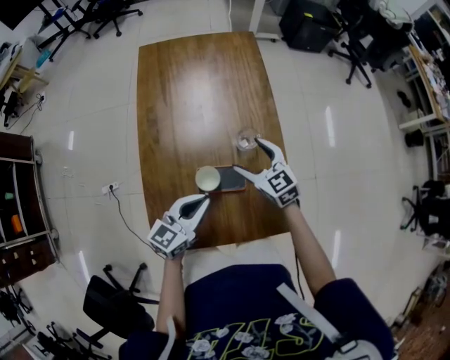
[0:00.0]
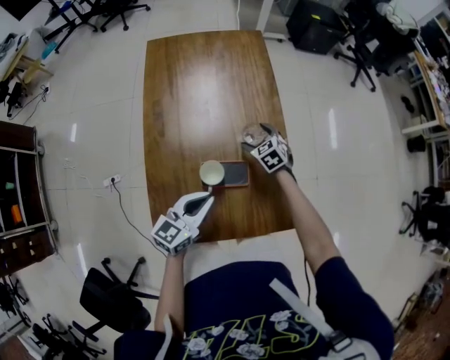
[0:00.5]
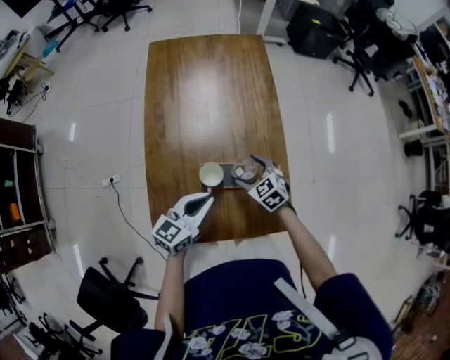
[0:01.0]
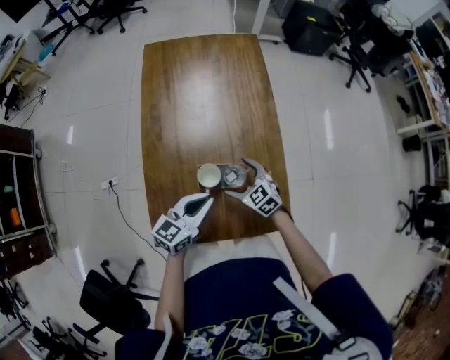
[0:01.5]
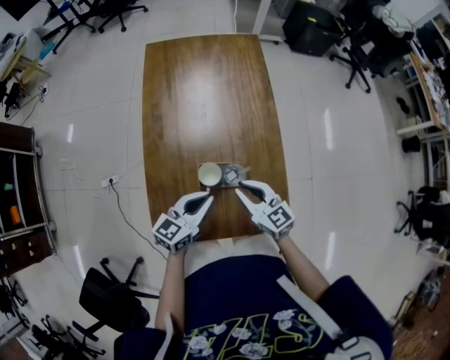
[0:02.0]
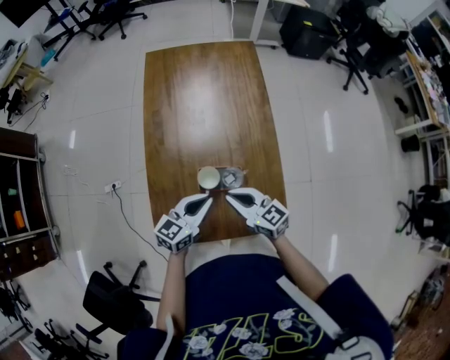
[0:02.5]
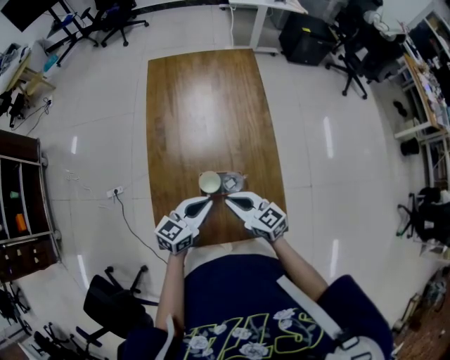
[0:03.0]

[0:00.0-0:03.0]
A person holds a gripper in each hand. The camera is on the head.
0:00.0 to 0:01.5: The right gripper shifts approximately 10 cm downward and backward.
0:01.5 to 0:03.0: The right gripper shifts roughly 15 cm upward and backward, rotates some 30 degrees, and closes.

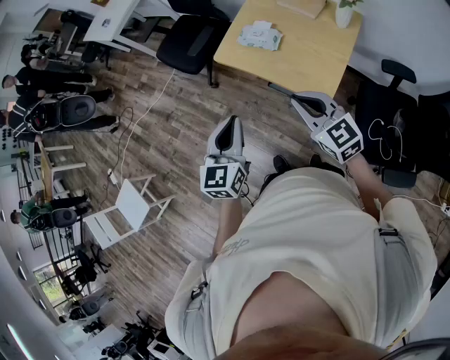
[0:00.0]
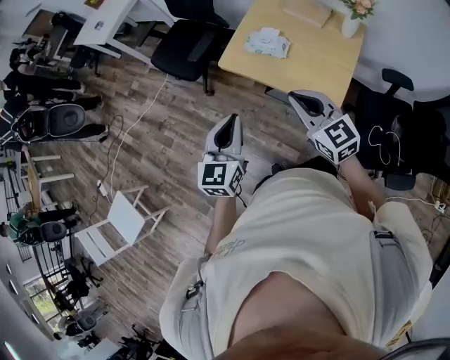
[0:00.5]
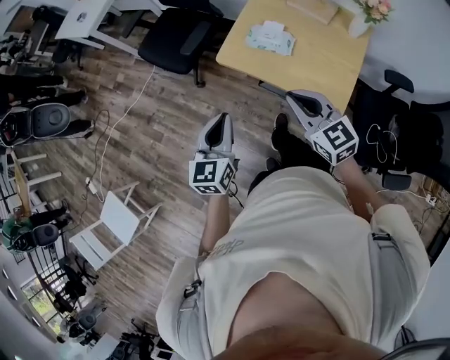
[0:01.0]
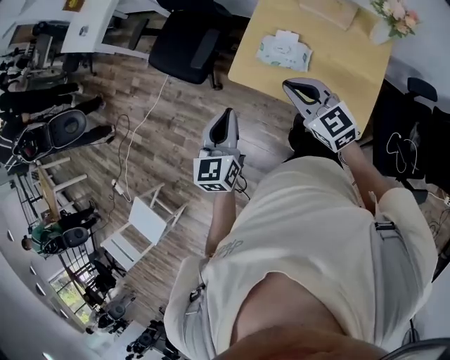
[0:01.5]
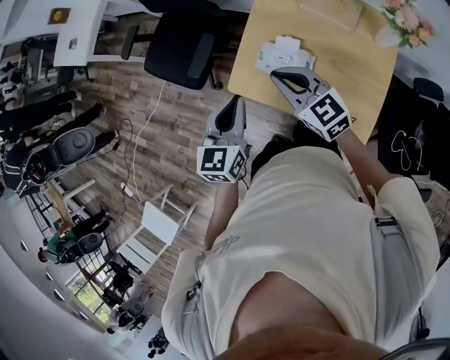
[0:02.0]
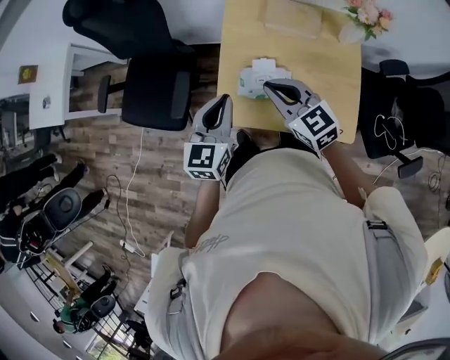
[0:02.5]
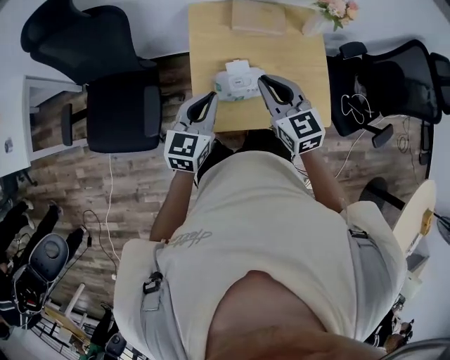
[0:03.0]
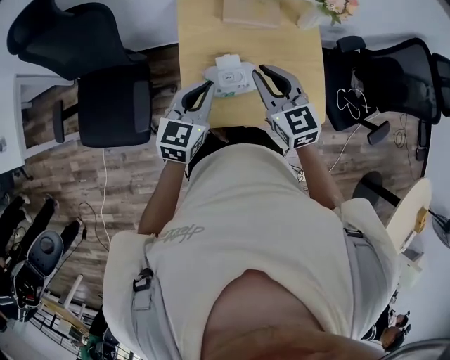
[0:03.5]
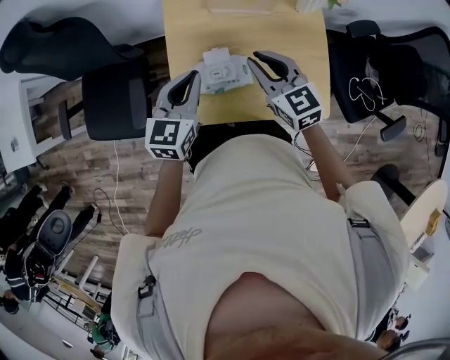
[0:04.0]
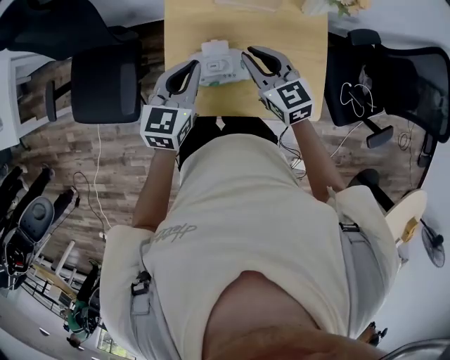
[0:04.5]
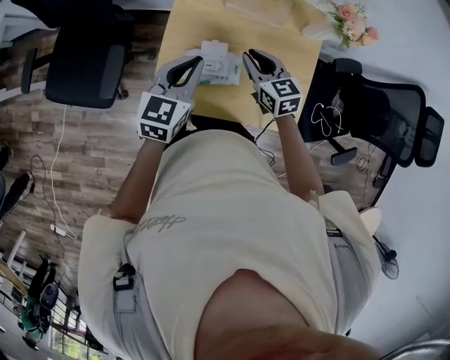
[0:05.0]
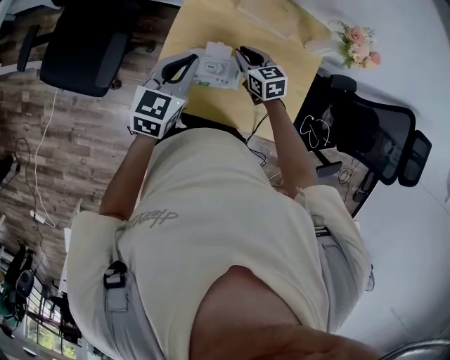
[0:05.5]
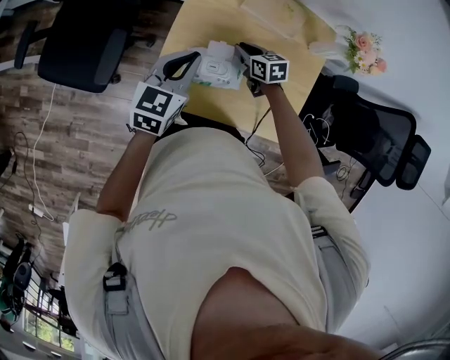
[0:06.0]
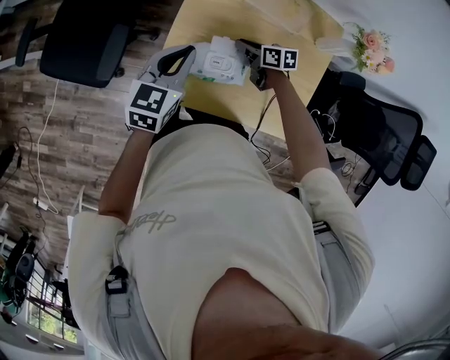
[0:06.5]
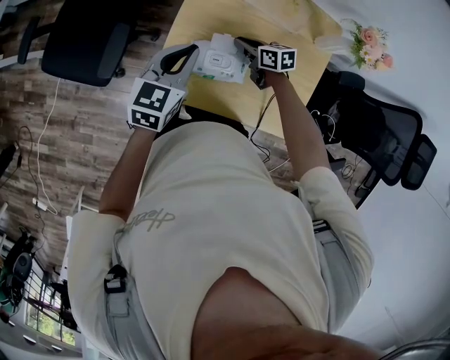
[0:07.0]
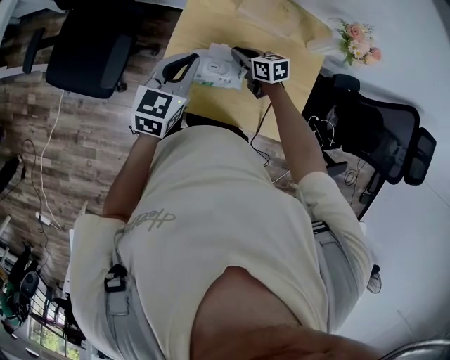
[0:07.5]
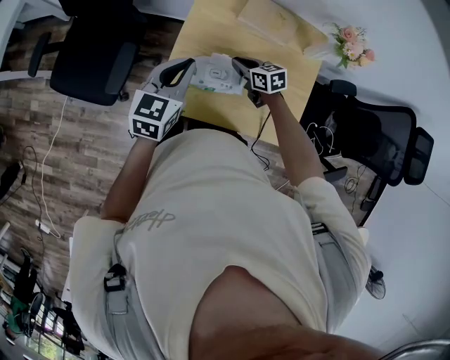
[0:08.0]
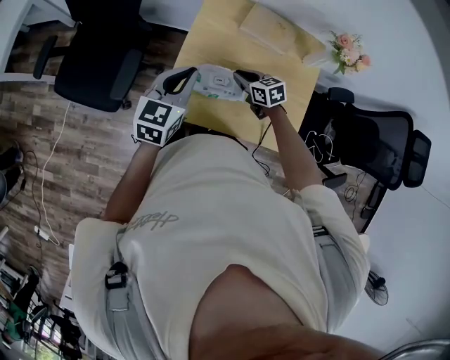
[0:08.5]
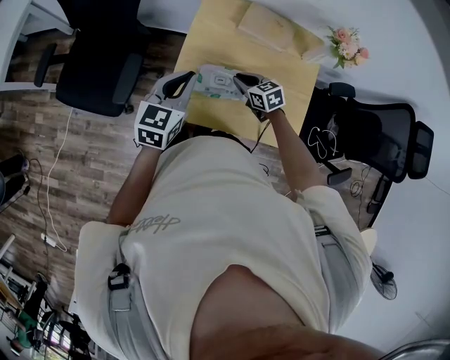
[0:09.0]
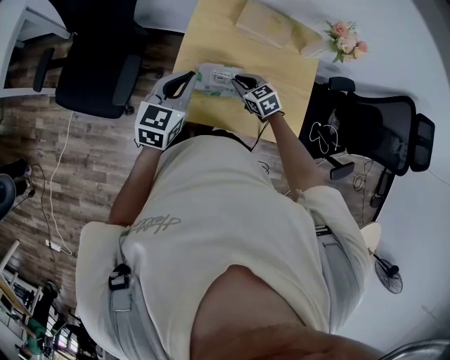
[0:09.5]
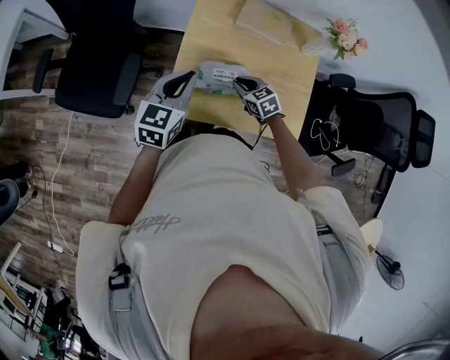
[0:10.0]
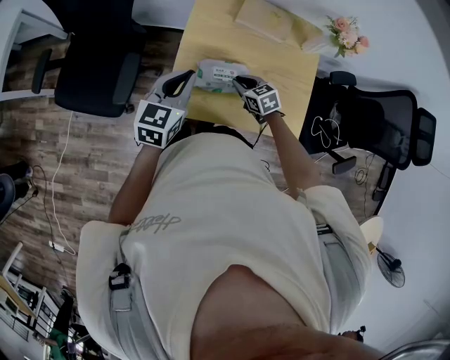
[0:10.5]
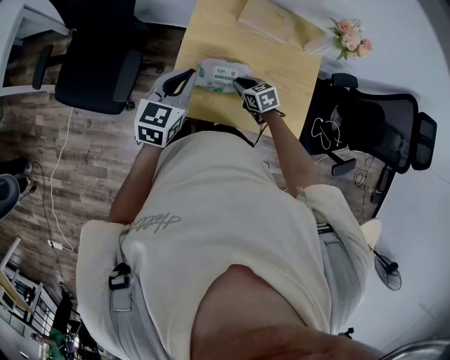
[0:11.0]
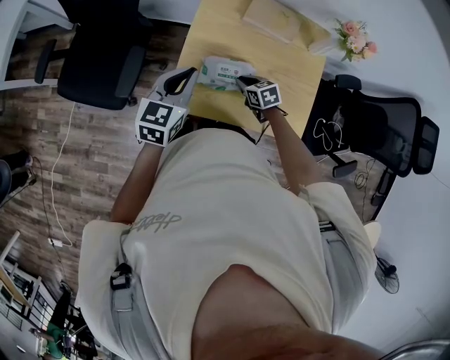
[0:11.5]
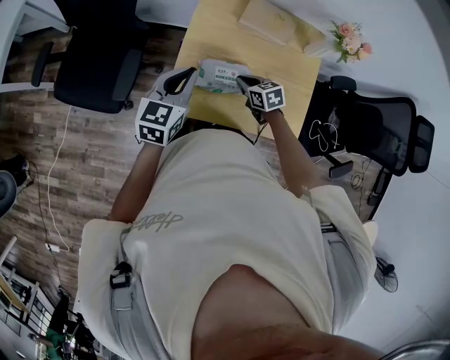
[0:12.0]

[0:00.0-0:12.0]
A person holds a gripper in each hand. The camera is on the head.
0:00.0 to 0:02.0: The two grippers go roughly 40 cm forward.
0:02.0 to 0:04.0: The right gripper shifts by roughly 15 cm, and swivels approximately 40 degrees. Meanwhile the left gripper changes place by about 15 cm, and turns by approximately 30 degrees.
0:04.0 to 0:06.0: The left gripper shifts some 5 cm to the left, while the right gripper is displaced downward and forward by approximately 25 cm, and turns by roughly 30 degrees.
0:06.0 to 0:08.0: The left gripper changes place by roughly 5 cm. The right gripper moves approximately 5 cm.
0:08.0 to 0:10.0: The right gripper travels backward by about 5 cm.
0:10.0 to 0:12.0: The grippers stay close to where they were, moving slightly.

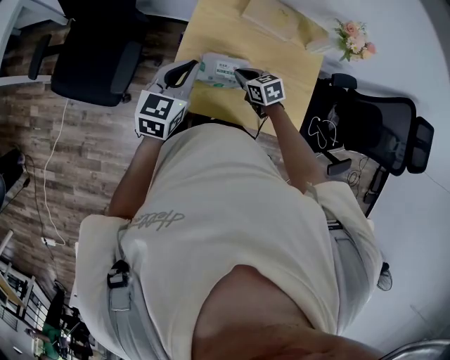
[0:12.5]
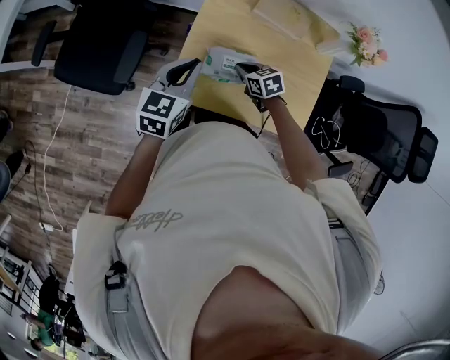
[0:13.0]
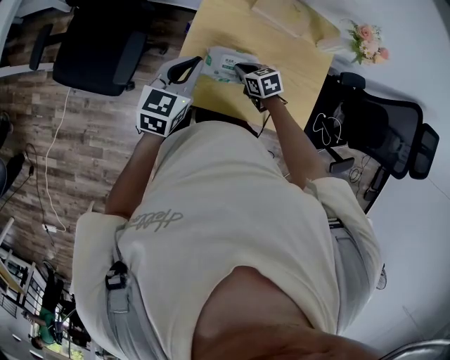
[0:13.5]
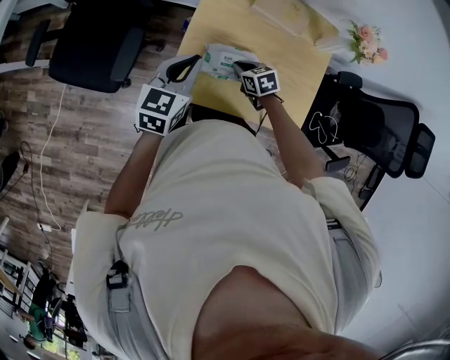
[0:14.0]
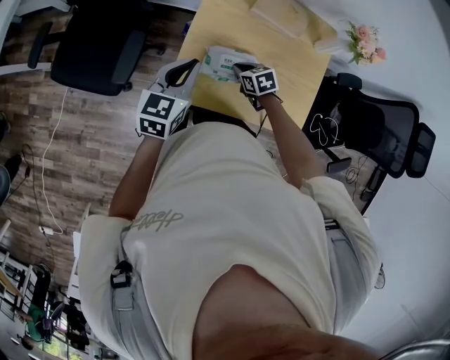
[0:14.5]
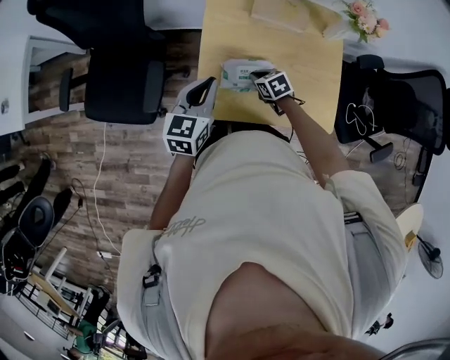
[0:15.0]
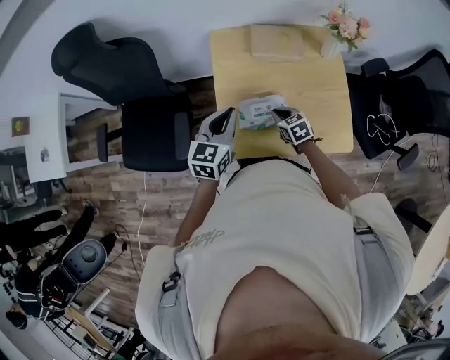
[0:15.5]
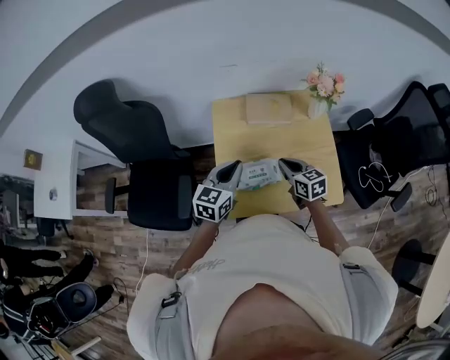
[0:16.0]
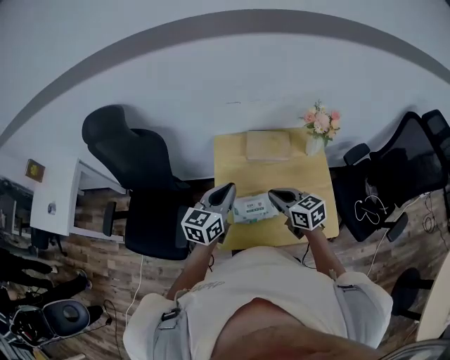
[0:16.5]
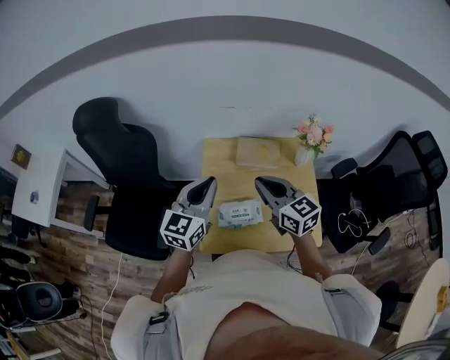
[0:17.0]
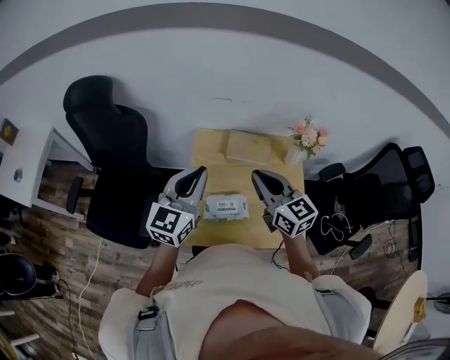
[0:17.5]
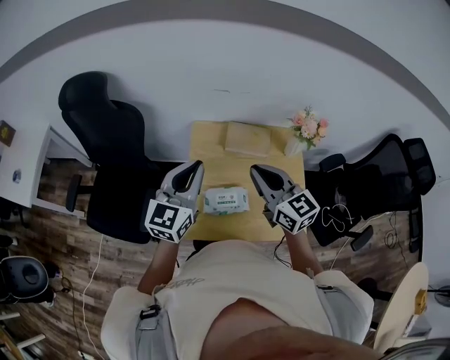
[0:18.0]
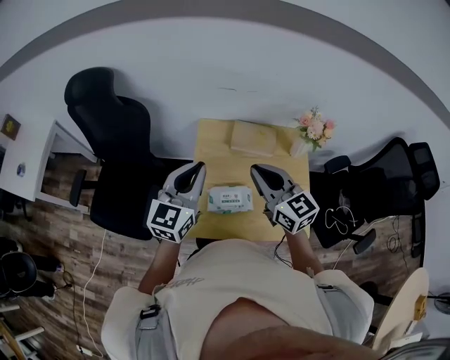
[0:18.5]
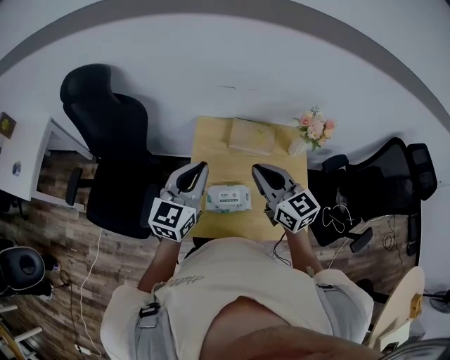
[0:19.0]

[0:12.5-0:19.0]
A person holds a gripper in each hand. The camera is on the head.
0:12.5 to 0:14.5: The grippers move only a little.
0:14.5 to 0:17.0: The left gripper moves upward, approximately 20 cm, and changes its angle by some 20 degrees. The right gripper shifts roughly 40 cm upward, and angles its fingers upward, by approximately 50 degrees.
0:17.0 to 0:19.0: The grippers stay close to where they were, moving slightly.

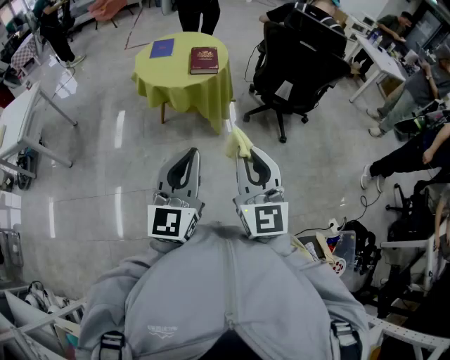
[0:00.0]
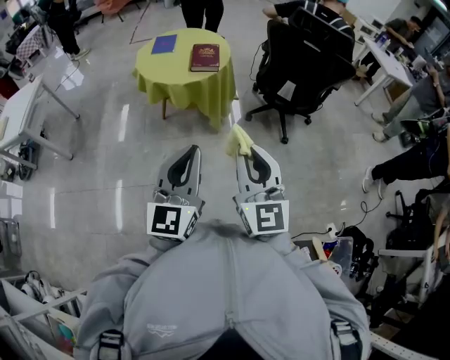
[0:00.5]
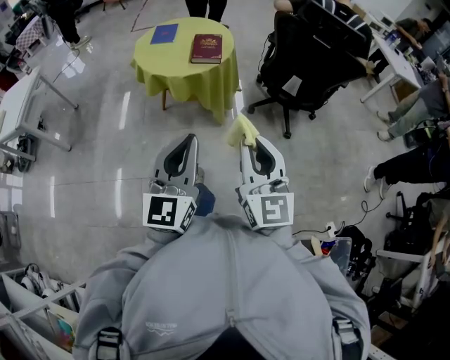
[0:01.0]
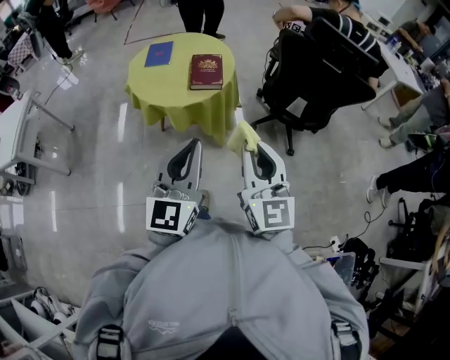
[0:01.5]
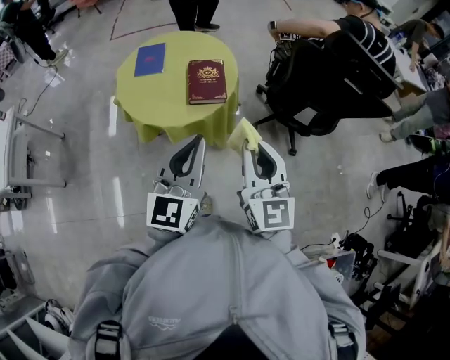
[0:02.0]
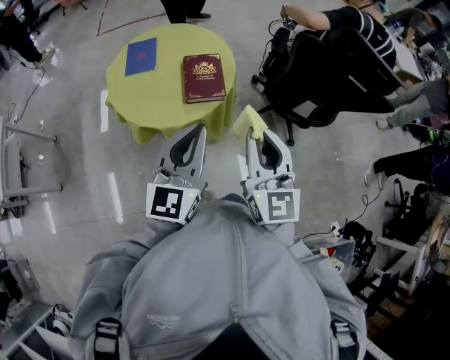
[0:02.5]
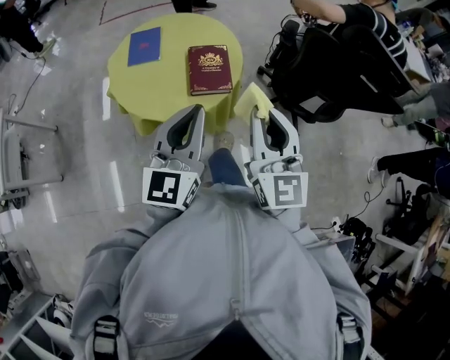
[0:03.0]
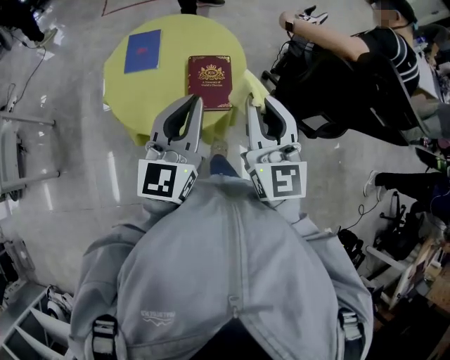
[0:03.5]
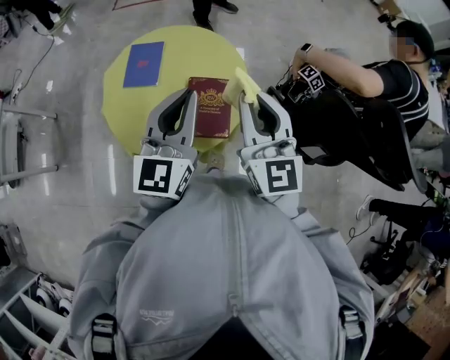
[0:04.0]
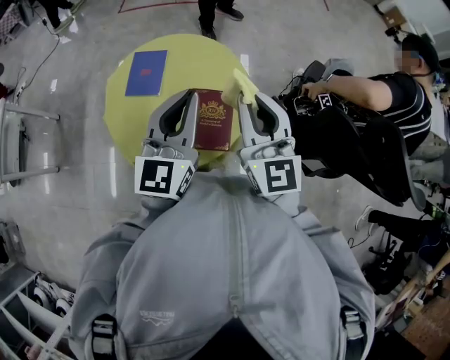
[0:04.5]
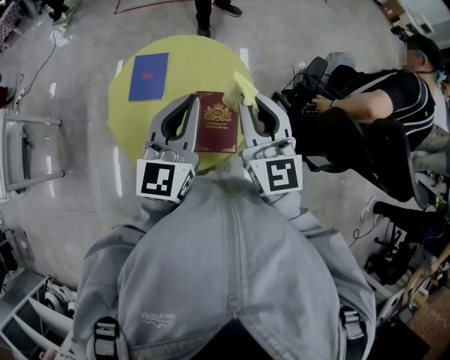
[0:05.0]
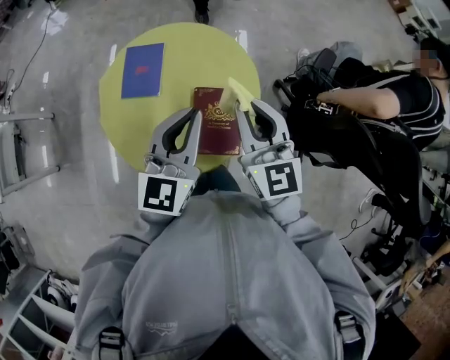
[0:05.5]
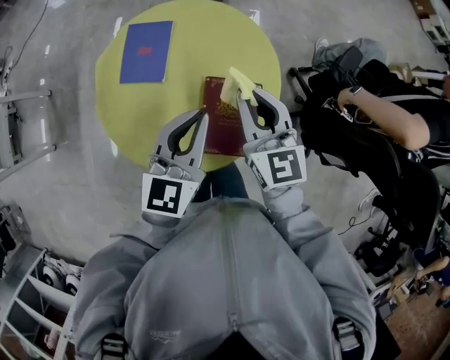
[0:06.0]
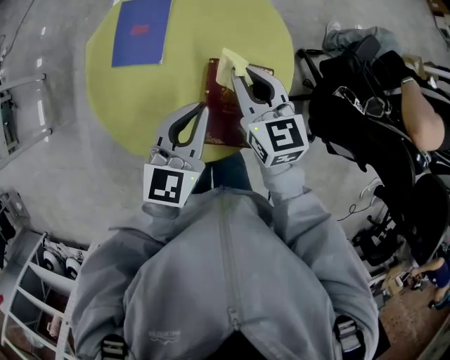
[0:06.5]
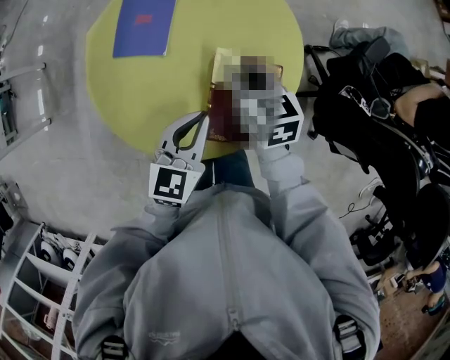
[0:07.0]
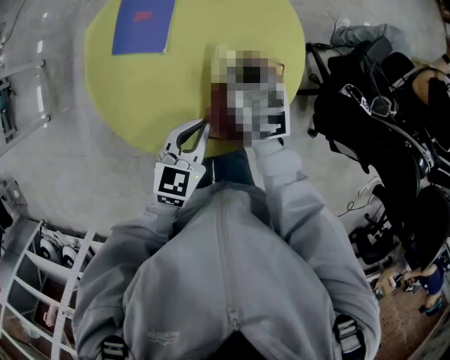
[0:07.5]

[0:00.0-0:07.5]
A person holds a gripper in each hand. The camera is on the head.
0:00.0 to 0:02.0: The pair of grippers is taken forward, roughly 50 cm.
0:02.0 to 0:04.0: Both grippers move forward, about 40 cm.
0:04.0 to 0:05.5: Both grippers move forward and downward, approximately 10 cm.
0:05.5 to 0:07.5: Both grippers travel together downward, some 30 cm. The right gripper tips its fingers downward by about 40 degrees. The left gripper turns by roughly 30 degrees.
